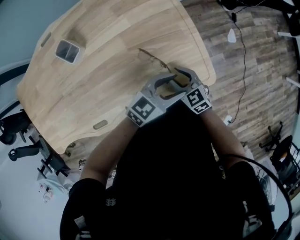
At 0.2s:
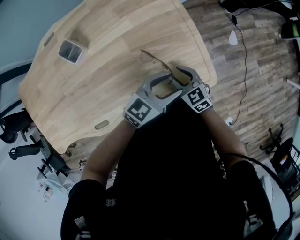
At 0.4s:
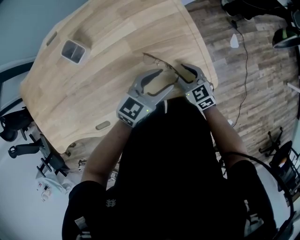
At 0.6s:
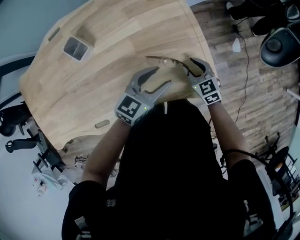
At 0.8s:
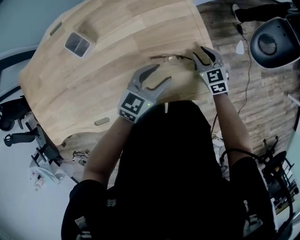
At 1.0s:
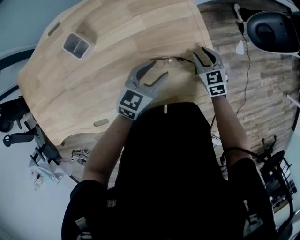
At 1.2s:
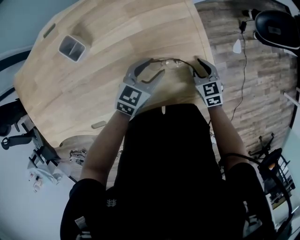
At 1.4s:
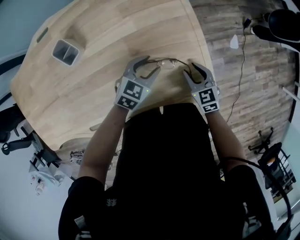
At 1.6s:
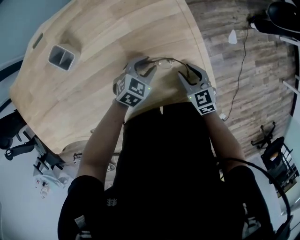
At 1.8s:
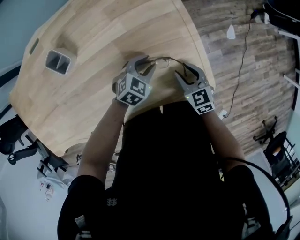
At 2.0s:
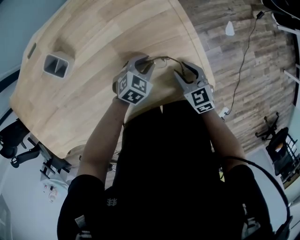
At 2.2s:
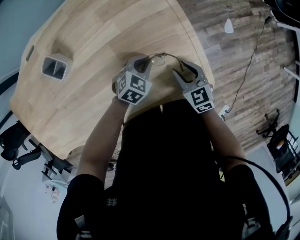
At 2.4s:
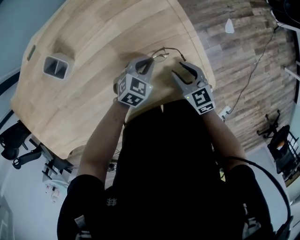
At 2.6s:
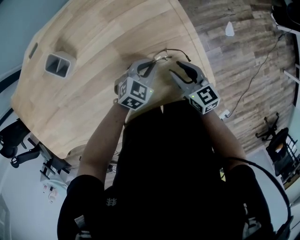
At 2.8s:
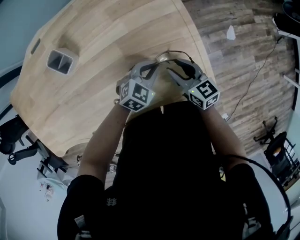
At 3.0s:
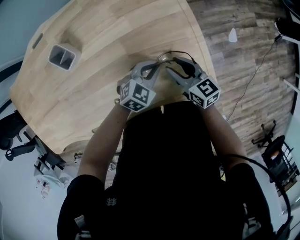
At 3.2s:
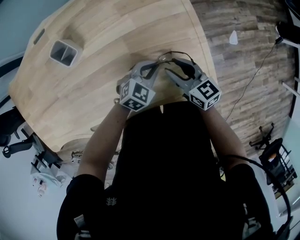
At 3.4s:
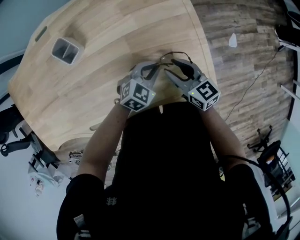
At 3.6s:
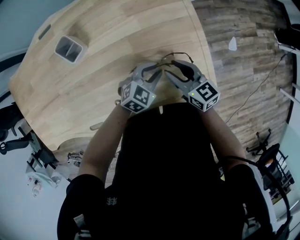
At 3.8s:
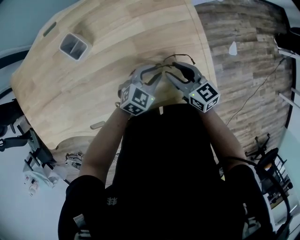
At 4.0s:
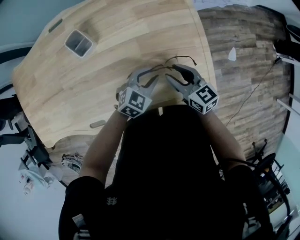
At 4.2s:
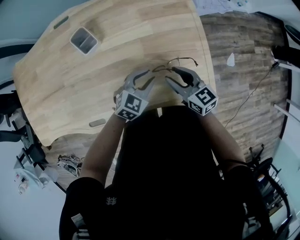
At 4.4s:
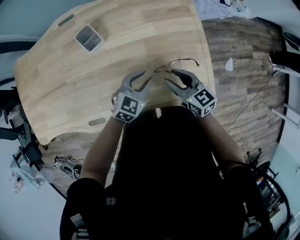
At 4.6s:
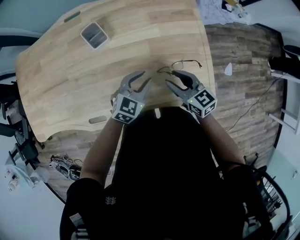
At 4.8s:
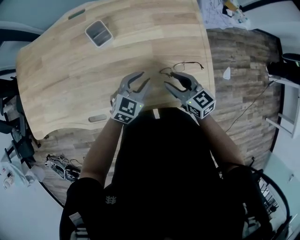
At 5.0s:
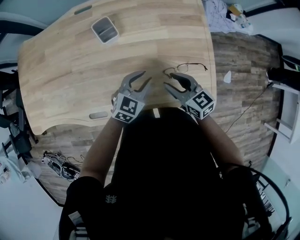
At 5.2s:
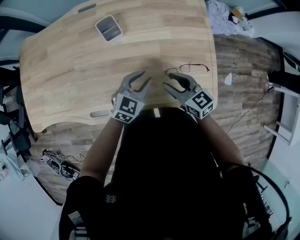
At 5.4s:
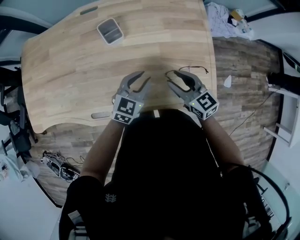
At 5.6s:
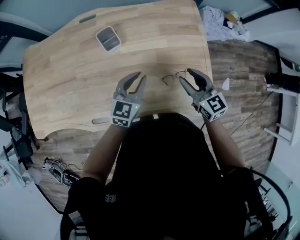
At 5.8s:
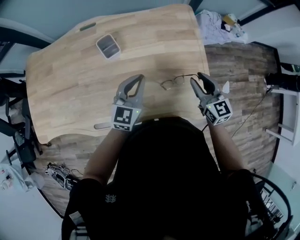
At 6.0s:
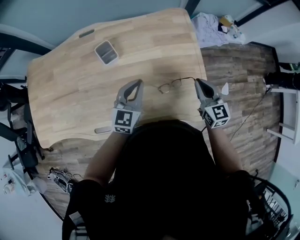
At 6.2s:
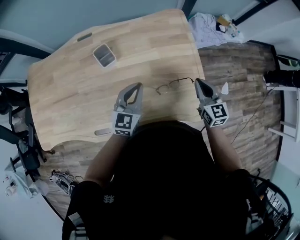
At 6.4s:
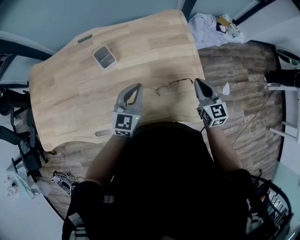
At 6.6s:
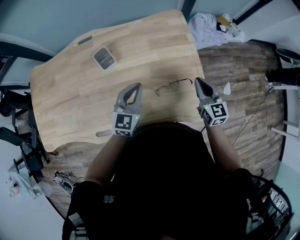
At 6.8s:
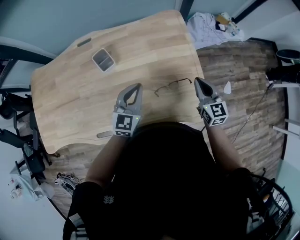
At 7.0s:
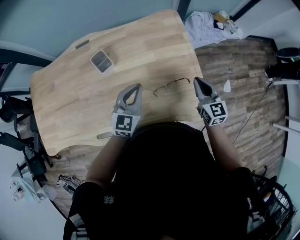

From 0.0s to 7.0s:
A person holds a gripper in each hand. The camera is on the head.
From 0.0s to 1.4s: The right gripper shifts approximately 10 cm forward, while the left gripper goes some 20 cm to the left, forward and downward, and rotates roughly 30 degrees.
From 1.4s to 2.8s: The left gripper closes; the right gripper shifts approximately 5 cm to the left, and changes its angle by roughly 30 degrees.
From 2.8s to 4.2s: The two grippers go some 10 cm to the left and upward. The left gripper opens.
From 4.2s to 5.6s: The left gripper heads upward and to the left, covering about 15 cm, and changes its angle by some 30 degrees, while the right gripper travels upward by roughly 10 cm.
From 5.6s to 7.0s: The right gripper travels to the right by approximately 10 cm, rotates some 20 degrees, and closes its fingers, while the left gripper goes roughly 5 cm upward and to the right.

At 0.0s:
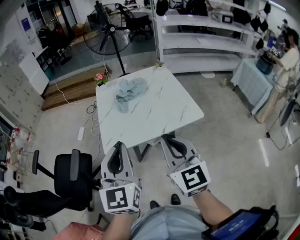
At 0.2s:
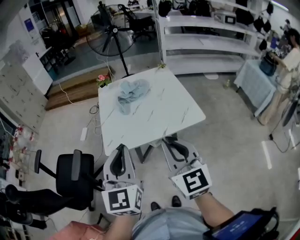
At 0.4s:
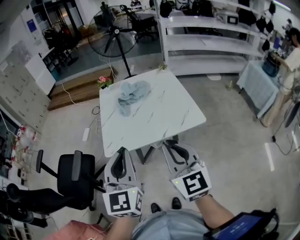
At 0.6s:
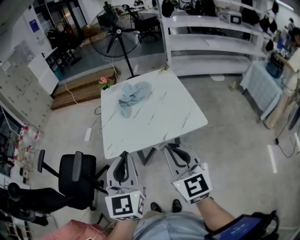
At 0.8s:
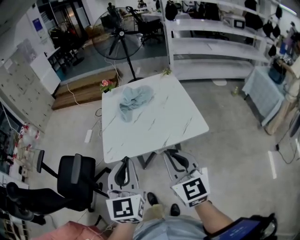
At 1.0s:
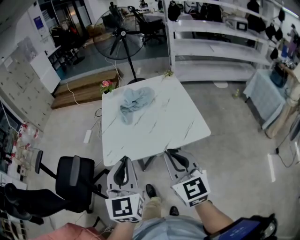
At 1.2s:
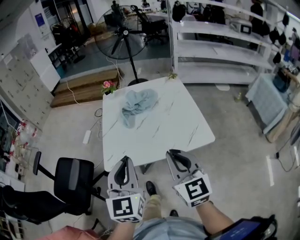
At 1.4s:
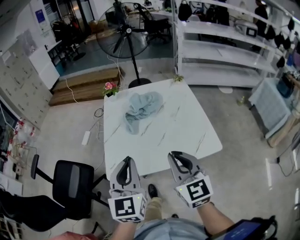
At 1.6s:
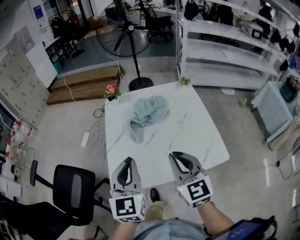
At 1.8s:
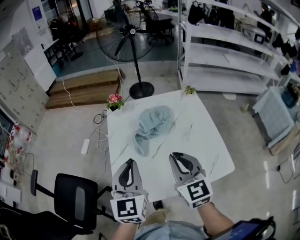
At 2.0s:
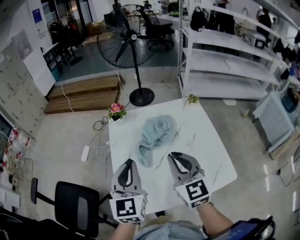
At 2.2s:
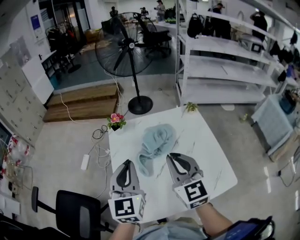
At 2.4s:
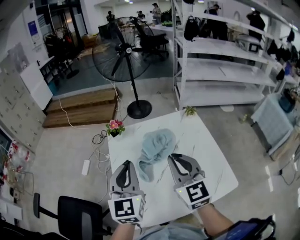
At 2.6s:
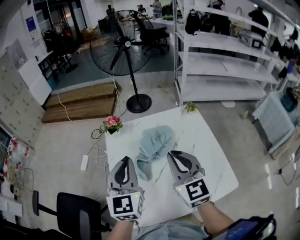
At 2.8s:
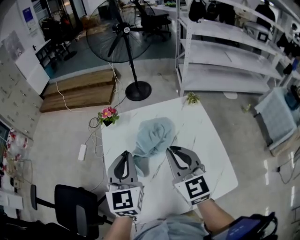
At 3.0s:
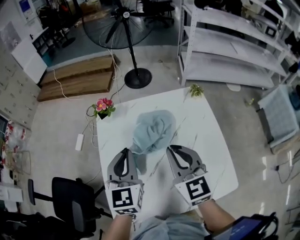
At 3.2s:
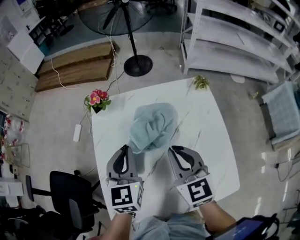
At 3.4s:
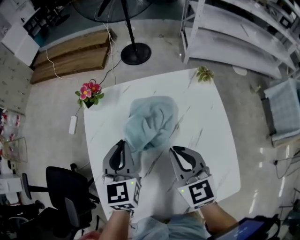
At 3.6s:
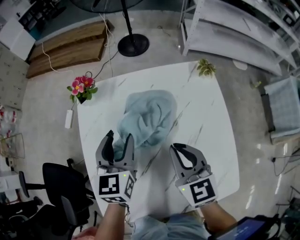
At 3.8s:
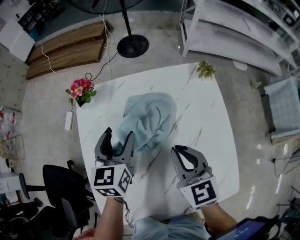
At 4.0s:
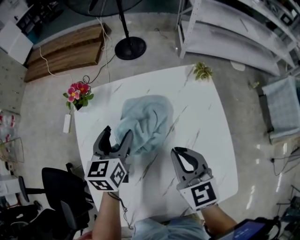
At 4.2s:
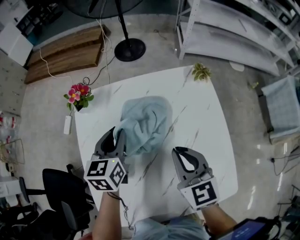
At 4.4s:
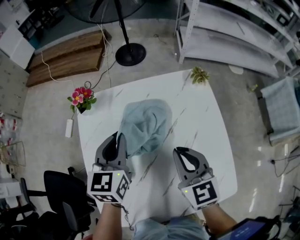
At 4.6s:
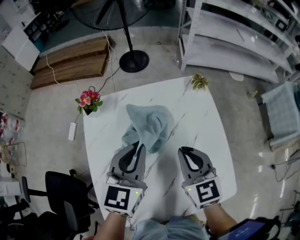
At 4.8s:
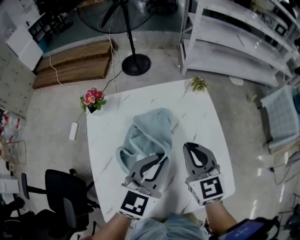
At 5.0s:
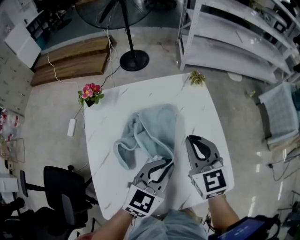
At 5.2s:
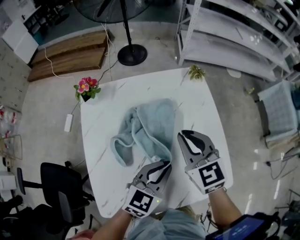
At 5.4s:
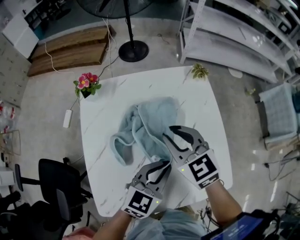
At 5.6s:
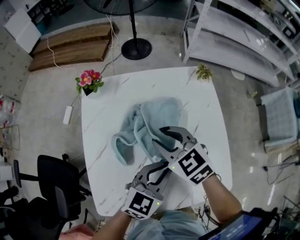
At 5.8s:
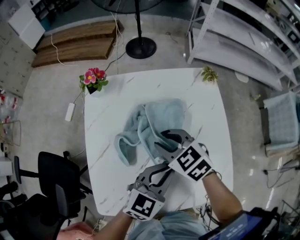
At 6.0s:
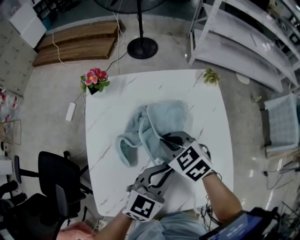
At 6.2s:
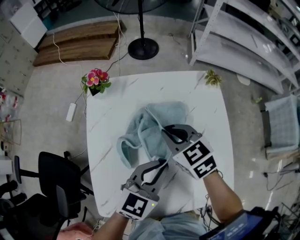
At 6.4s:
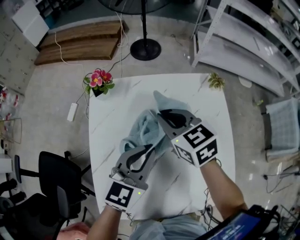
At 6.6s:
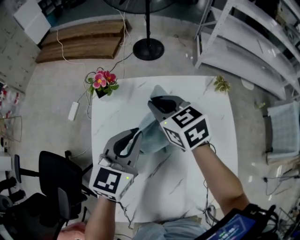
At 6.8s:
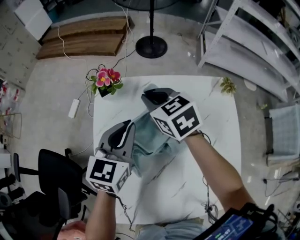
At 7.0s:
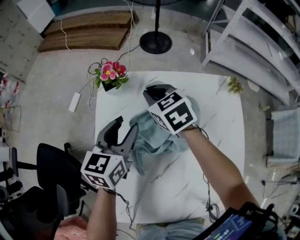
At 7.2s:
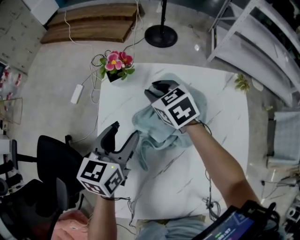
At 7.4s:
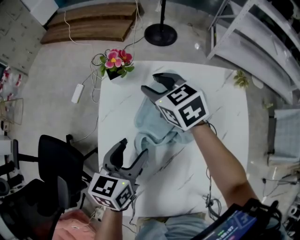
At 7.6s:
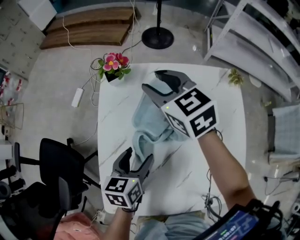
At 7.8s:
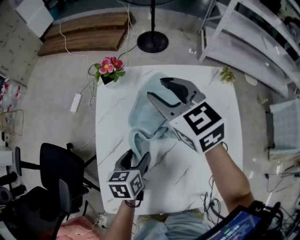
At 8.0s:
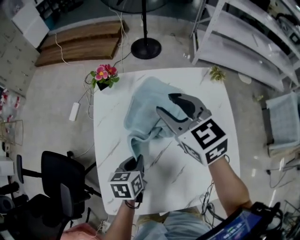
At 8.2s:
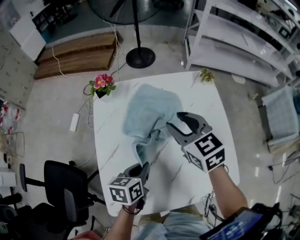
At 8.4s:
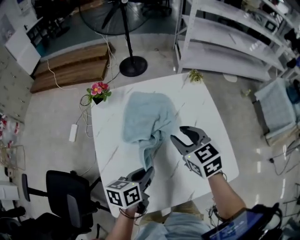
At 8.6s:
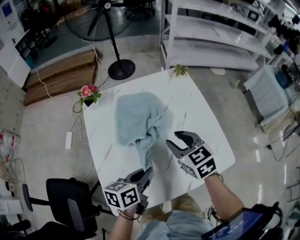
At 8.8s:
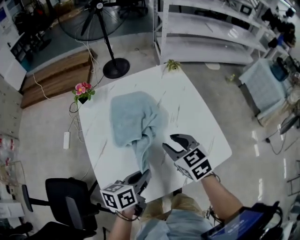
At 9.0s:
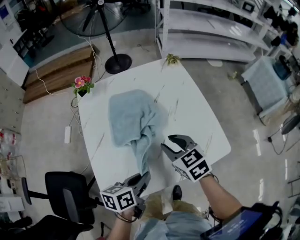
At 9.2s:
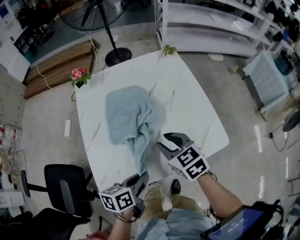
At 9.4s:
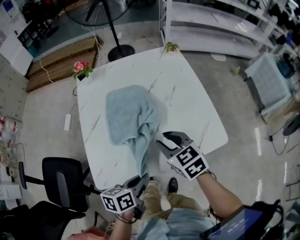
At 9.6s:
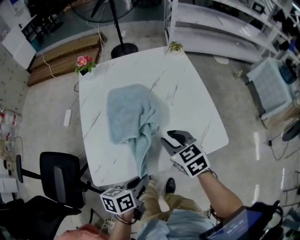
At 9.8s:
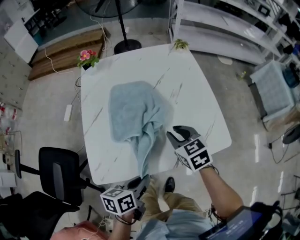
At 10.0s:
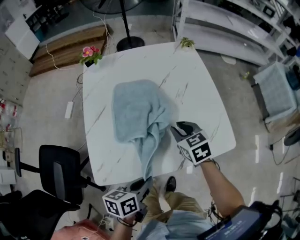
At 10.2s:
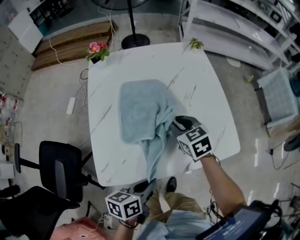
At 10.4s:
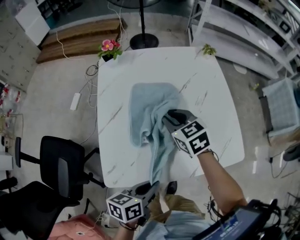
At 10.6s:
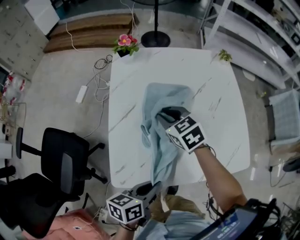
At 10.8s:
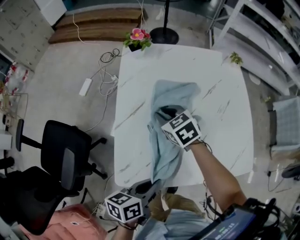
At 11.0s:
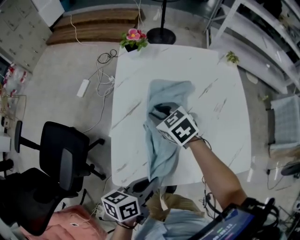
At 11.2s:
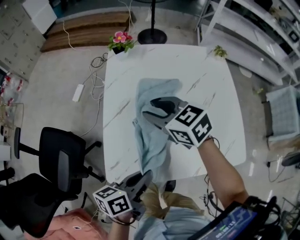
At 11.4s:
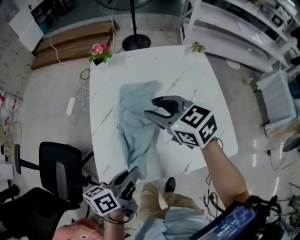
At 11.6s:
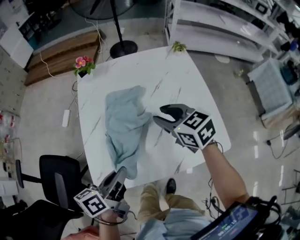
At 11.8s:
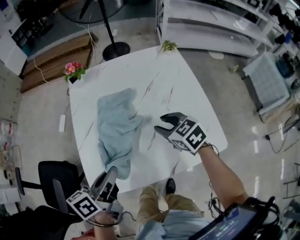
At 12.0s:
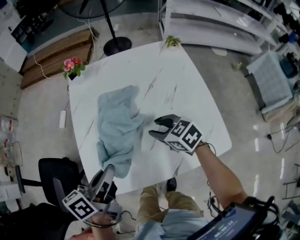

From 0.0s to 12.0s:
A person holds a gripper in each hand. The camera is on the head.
From 0.0s to 1.6s: The two grippers go some 25 cm forward.
From 1.6s to 3.0s: The grippers both shift forward by about 25 cm.
From 3.0s to 4.4s: The left gripper heads forward and downward, covering approximately 10 cm, and opens, then closes once more. Meanwhile the right gripper heads downward and to the right, covering some 10 cm.
From 4.4s to 6.0s: The right gripper travels to the left and downward by some 10 cm, changes its angle by about 40 degrees, and opens, then closes once more. Meanwhile the left gripper shifts approximately 20 cm backward and to the right, and swivels roughly 30 degrees.
From 6.0s to 7.6s: The left gripper travels to the left, downward and forward by about 20 cm, swivels about 40 degrees, and opens its fingers, while the right gripper is displaced forward, to the left and upward by approximately 20 cm, changes its angle by some 20 degrees, and opens its fingers.
From 7.6s to 9.0s: The right gripper shifts by roughly 35 cm, and turns by some 30 degrees, while the left gripper shifts by roughly 25 cm, swivels about 30 degrees, and closes.
From 9.0s to 10.4s: The left gripper heads backward, covering about 10 cm. Meanwhile the right gripper travels to the left and forward by approximately 10 cm.
From 10.4s to 12.0s: The right gripper travels to the left and back again, approximately 15 cm each way. The left gripper moves forward and upward, some 15 cm.

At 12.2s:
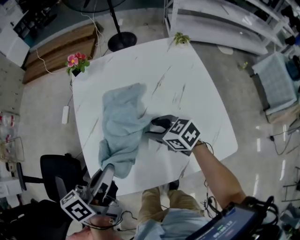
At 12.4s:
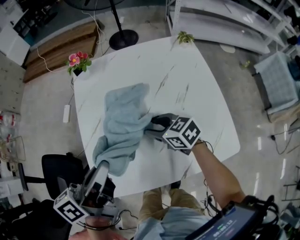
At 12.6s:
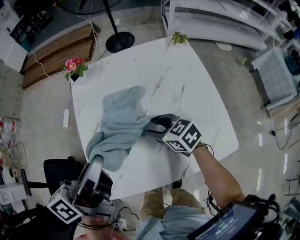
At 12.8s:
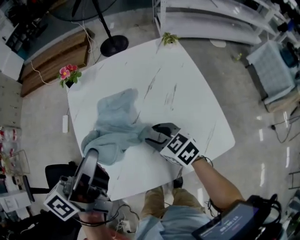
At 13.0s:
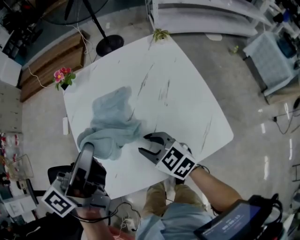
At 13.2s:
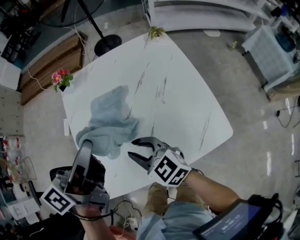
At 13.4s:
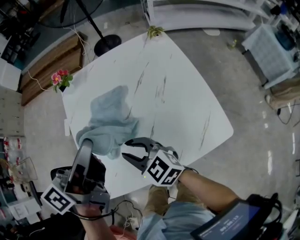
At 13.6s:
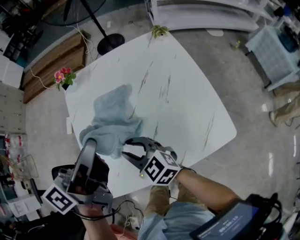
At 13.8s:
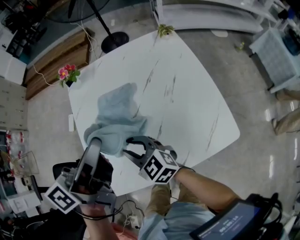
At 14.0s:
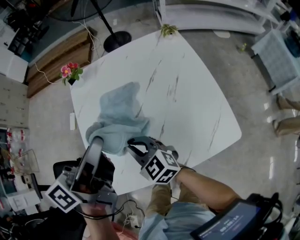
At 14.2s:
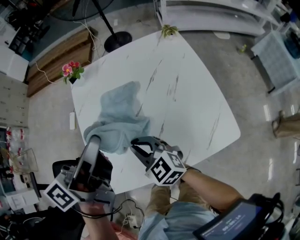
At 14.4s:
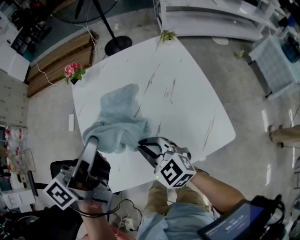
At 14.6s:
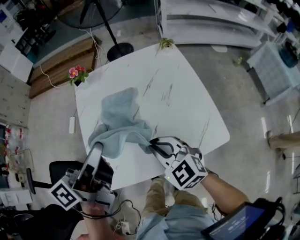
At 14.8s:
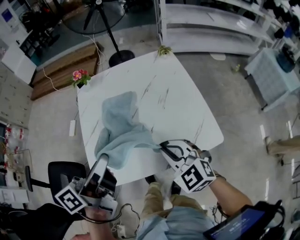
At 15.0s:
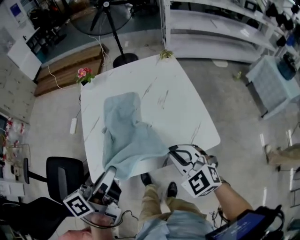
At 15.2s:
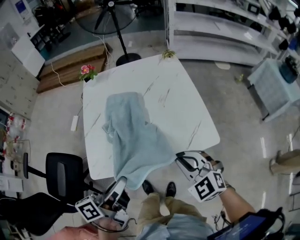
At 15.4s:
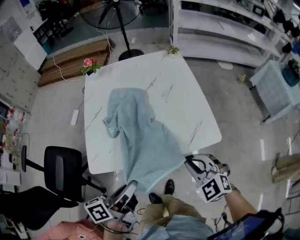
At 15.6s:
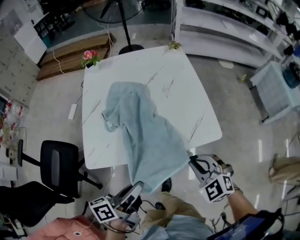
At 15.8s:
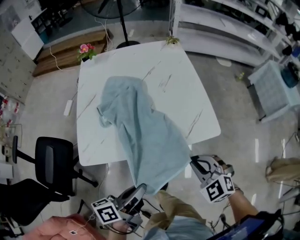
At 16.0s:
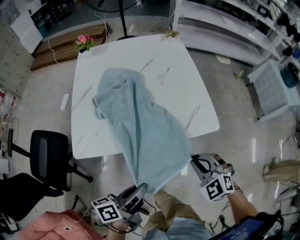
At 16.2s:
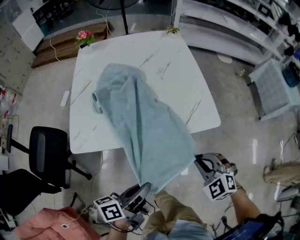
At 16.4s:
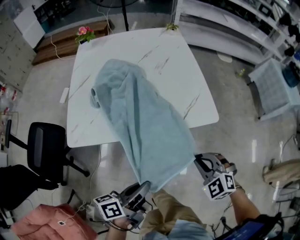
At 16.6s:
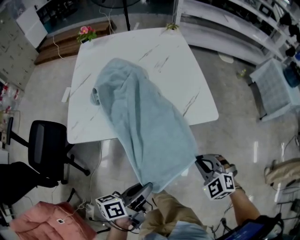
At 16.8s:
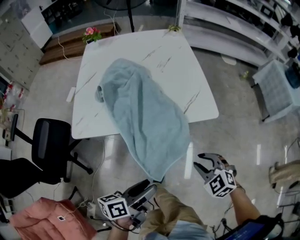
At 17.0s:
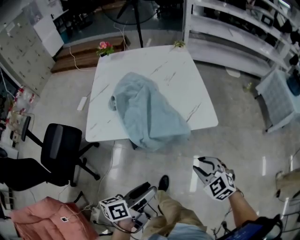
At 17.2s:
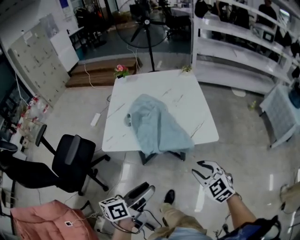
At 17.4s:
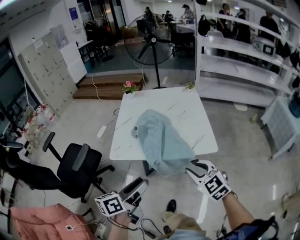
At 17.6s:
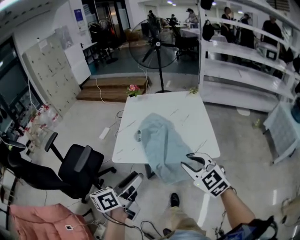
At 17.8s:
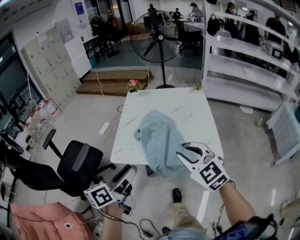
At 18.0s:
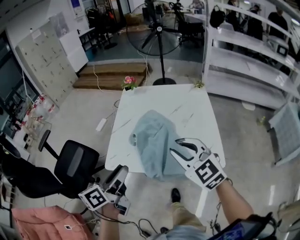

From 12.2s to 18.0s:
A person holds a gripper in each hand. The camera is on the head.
From 12.2s to 13.6s: The right gripper travels to the left, upward and backward by approximately 10 cm, and changes its angle by about 20 degrees, while the left gripper goes roughly 15 cm upward, to the right and forward.
From 13.6s to 15.0s: The right gripper goes roughly 20 cm to the right, backward and upward, swivels approximately 30 degrees, and closes its fingers. Meanwhile the left gripper shifts roughly 20 cm backward.
From 15.0s to 16.6s: The right gripper shifts some 30 cm downward, to the right and backward, and rotates about 20 degrees. The left gripper heads downward, backward and to the right, covering about 35 cm.
From 16.6s to 18.0s: The right gripper moves upward, about 25 cm, and swivels some 30 degrees. The left gripper moves some 30 cm, rotates approximately 40 degrees, and opens.
